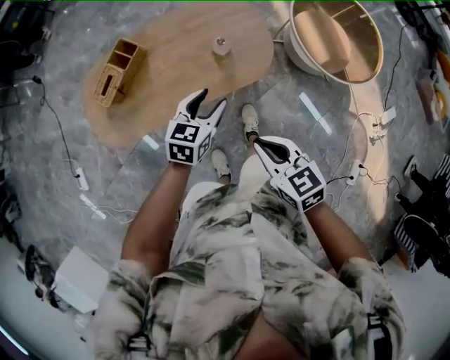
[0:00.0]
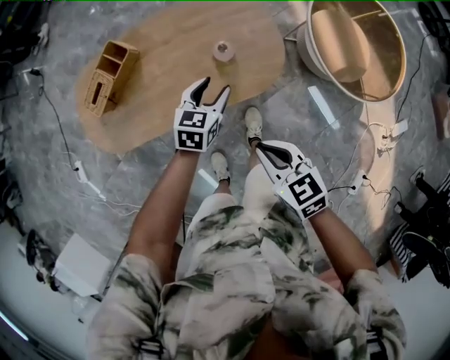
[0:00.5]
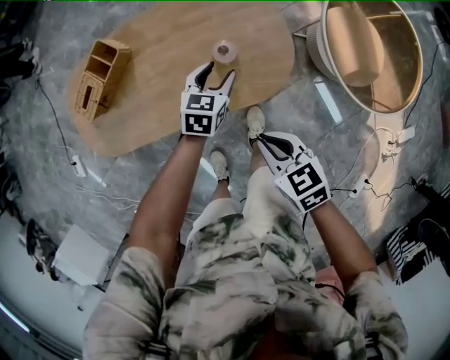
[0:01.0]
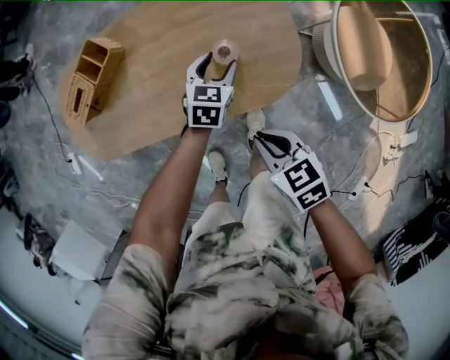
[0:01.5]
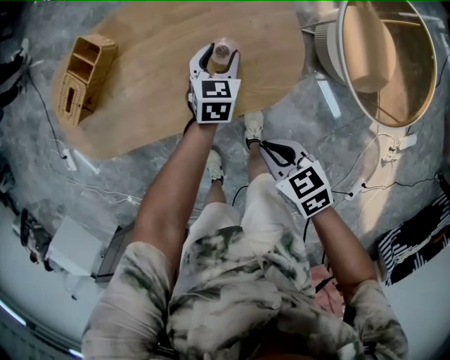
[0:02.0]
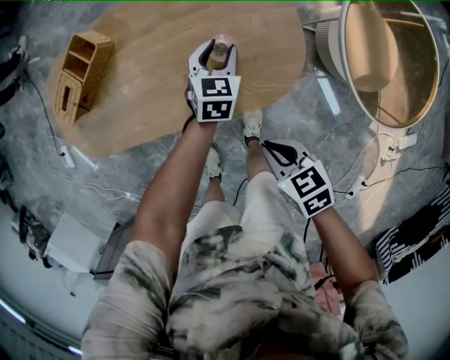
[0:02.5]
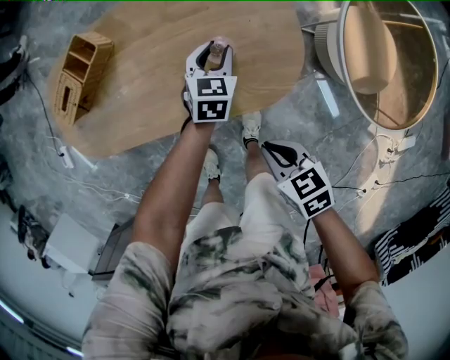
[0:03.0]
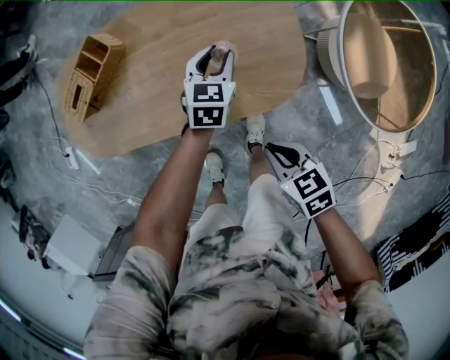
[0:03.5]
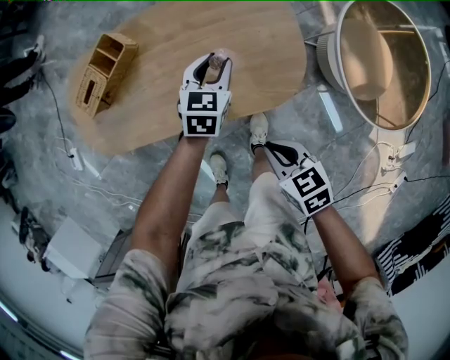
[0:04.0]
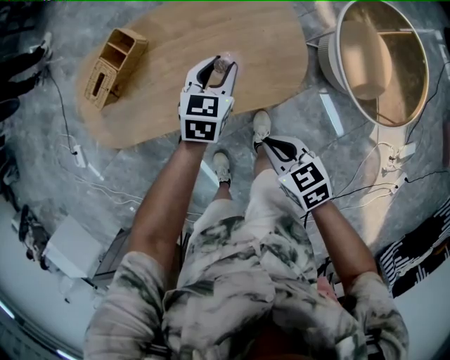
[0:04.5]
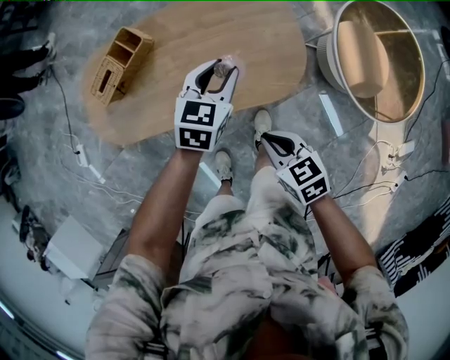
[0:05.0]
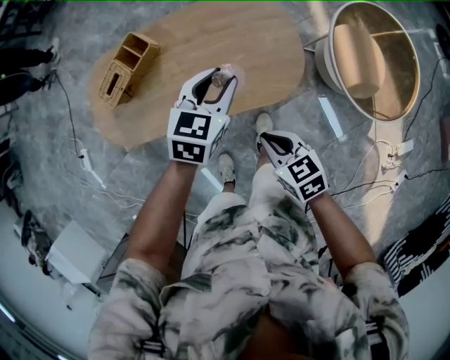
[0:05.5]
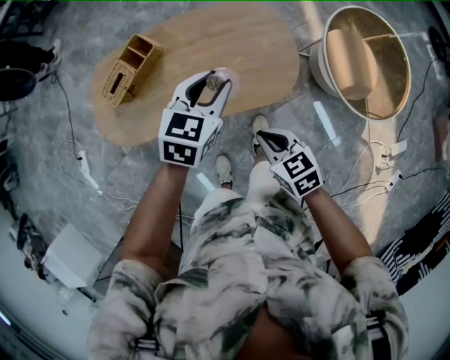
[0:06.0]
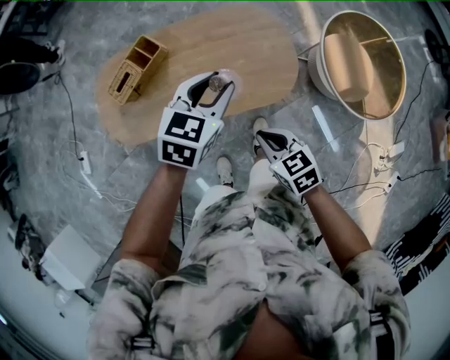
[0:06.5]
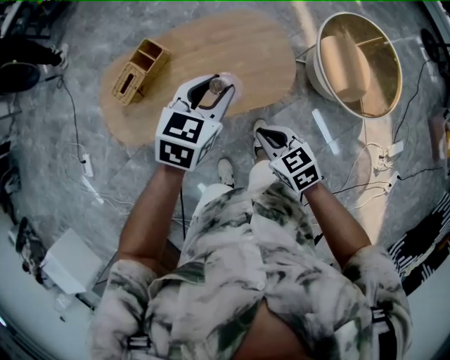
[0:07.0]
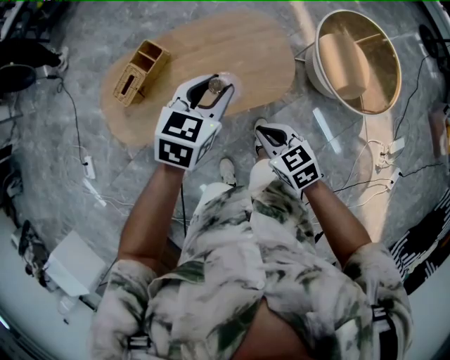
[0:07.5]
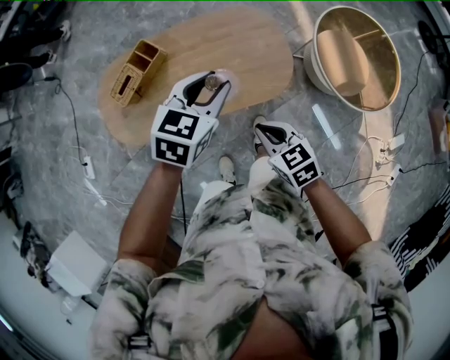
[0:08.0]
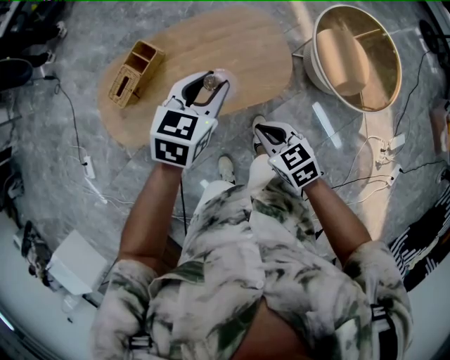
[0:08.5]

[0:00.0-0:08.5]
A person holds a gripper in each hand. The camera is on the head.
0:00.0 to 0:02.0: Both grippers move downward, about 30 cm. The left gripper swivels approximately 20 degrees. Meanwhile the right gripper swivels approximately 20 degrees.
0:02.0 to 0:04.0: The left gripper is displaced upward by some 10 cm.
0:04.0 to 0:06.5: The right gripper shifts roughly 15 cm upward and to the left. Meanwhile the left gripper travels upward by roughly 25 cm.
0:06.5 to 0:08.5: The grippers stay close to where they were, moving slightly.

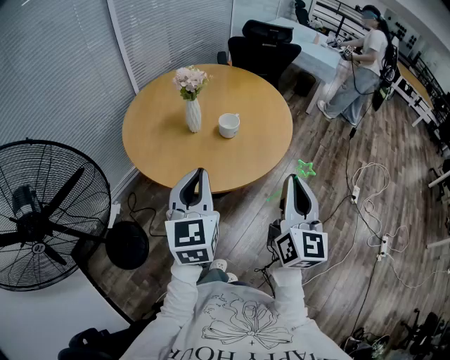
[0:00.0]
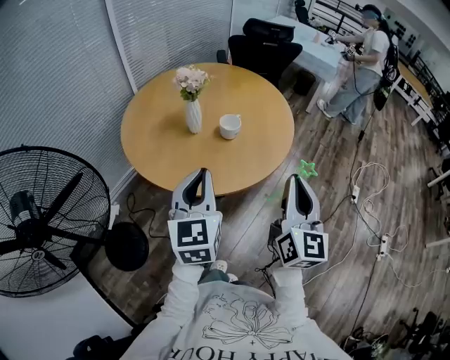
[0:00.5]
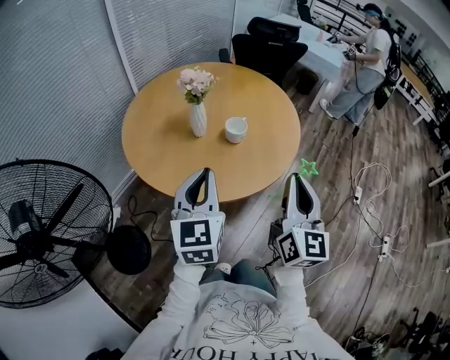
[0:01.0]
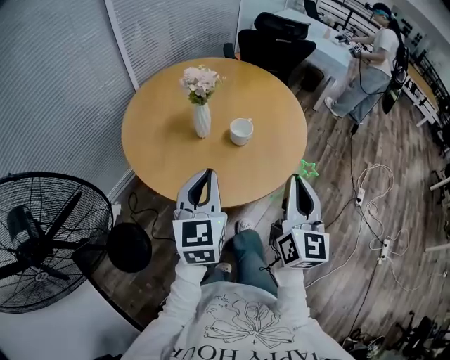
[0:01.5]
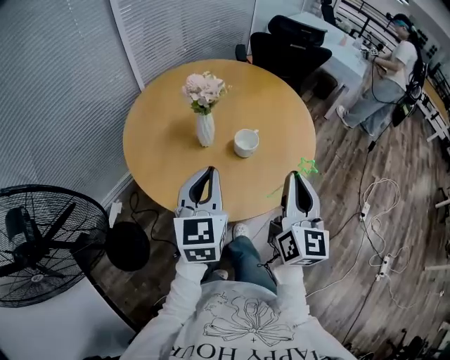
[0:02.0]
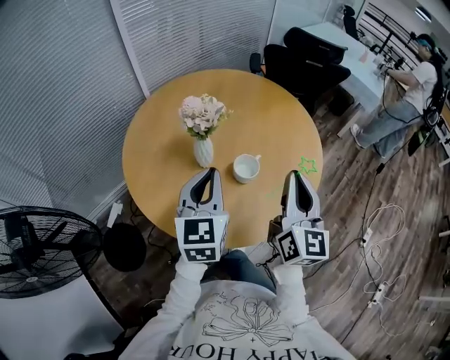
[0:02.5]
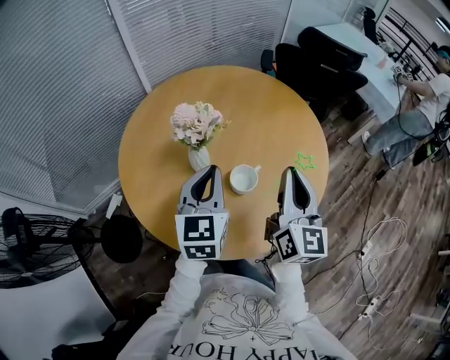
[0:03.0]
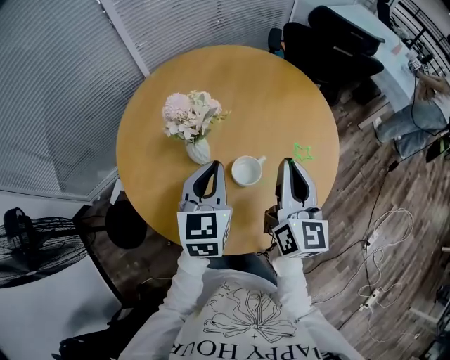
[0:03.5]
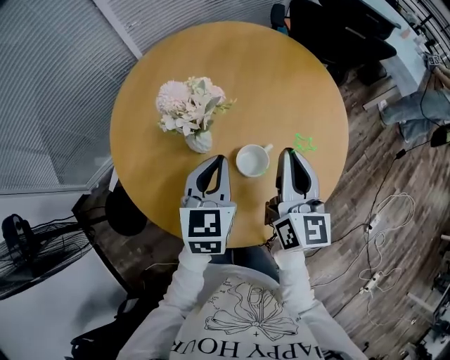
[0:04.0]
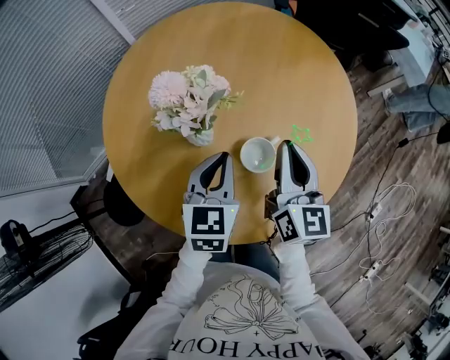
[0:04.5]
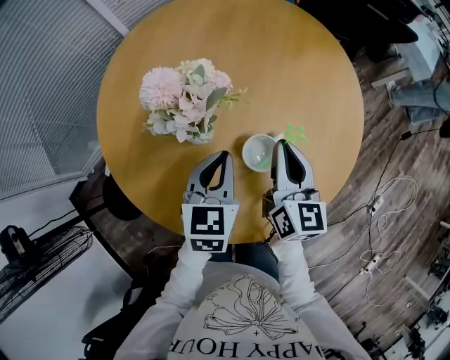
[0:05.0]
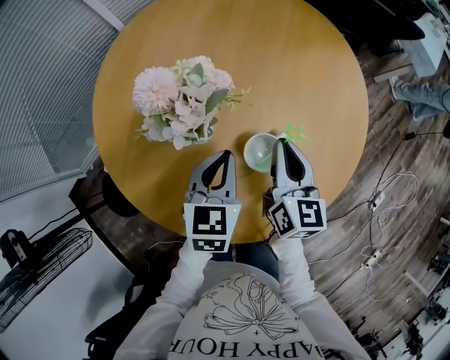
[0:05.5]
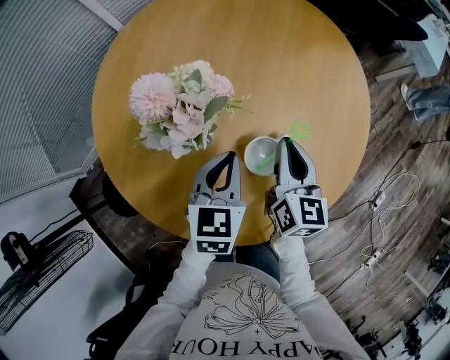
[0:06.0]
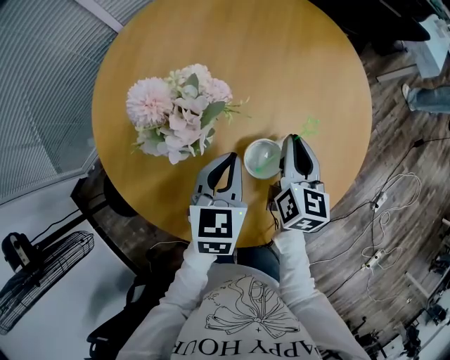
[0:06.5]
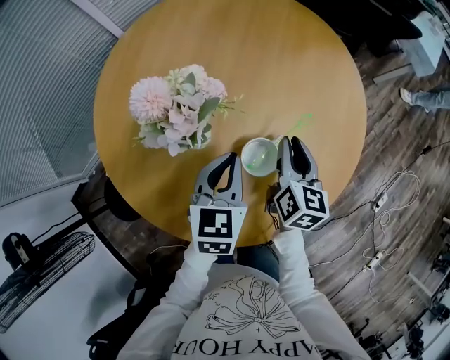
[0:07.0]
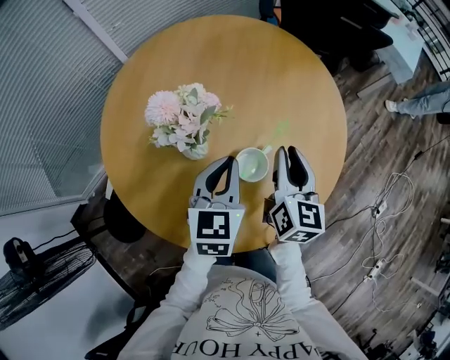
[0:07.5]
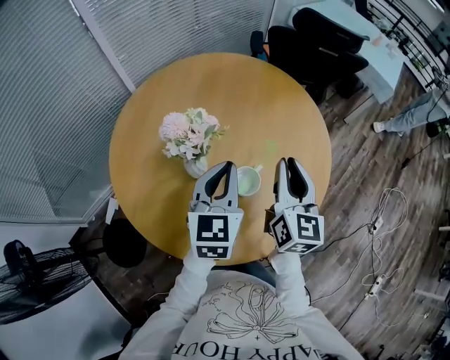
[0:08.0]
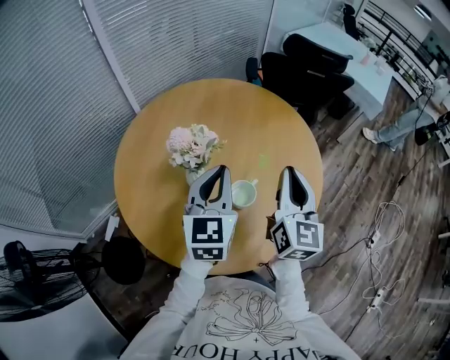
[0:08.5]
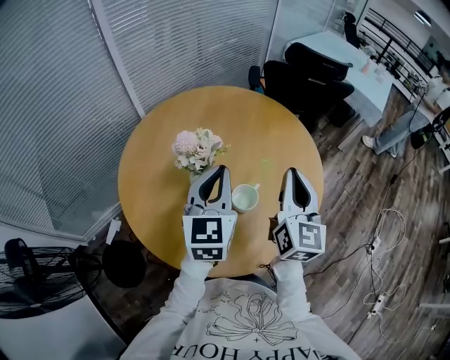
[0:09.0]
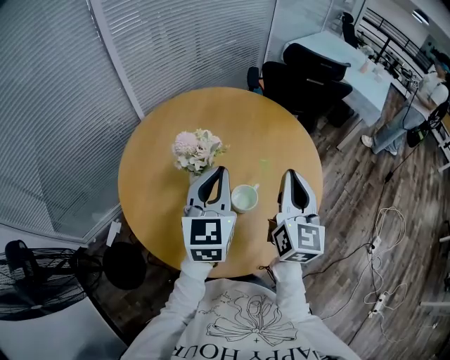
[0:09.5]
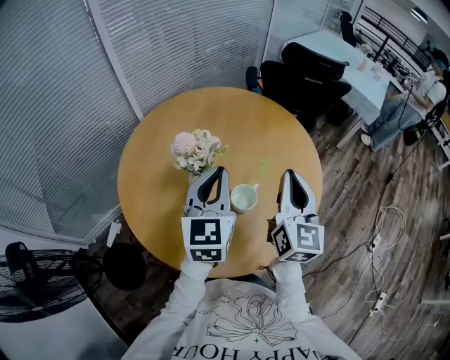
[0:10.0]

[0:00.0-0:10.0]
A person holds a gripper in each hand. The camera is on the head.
0:00.0 to 0:02.0: Both grippers travel together forward, approximately 20 cm.
0:02.0 to 0:04.0: The left gripper moves forward and downward, approximately 25 cm, while the right gripper moves forward, about 25 cm.
0:04.0 to 0:06.0: The two grippers go some 10 cm downward.
0:06.0 to 0:08.0: Both grippers travel together upward, about 15 cm.
0:08.0 to 0:10.0: The two grippers go about 5 cm upward.

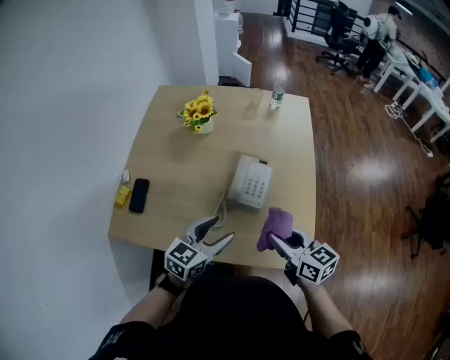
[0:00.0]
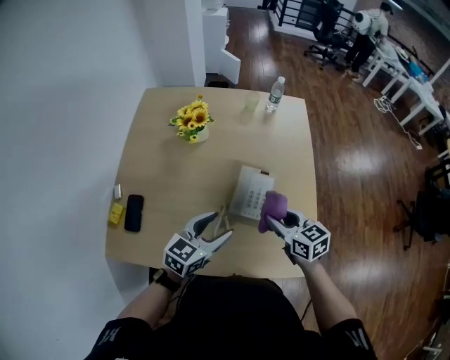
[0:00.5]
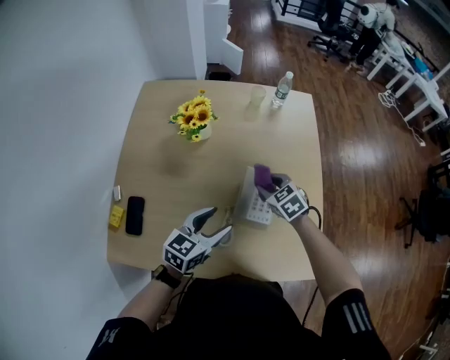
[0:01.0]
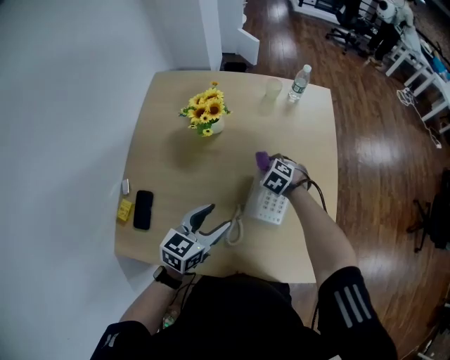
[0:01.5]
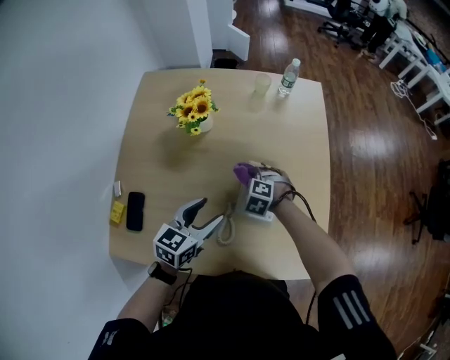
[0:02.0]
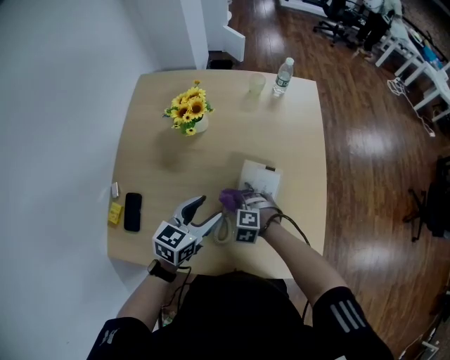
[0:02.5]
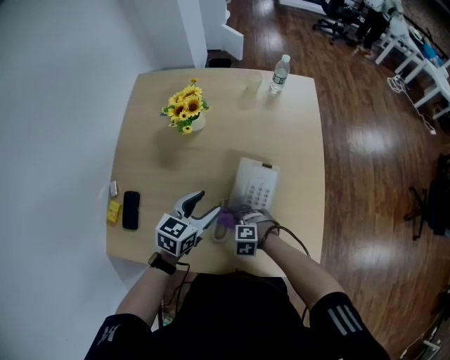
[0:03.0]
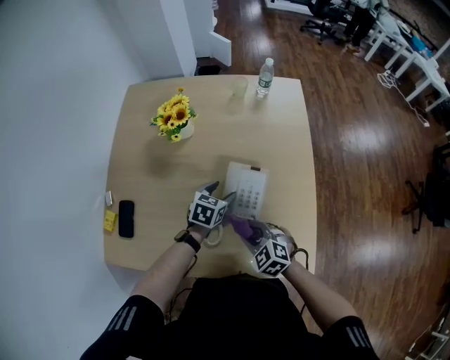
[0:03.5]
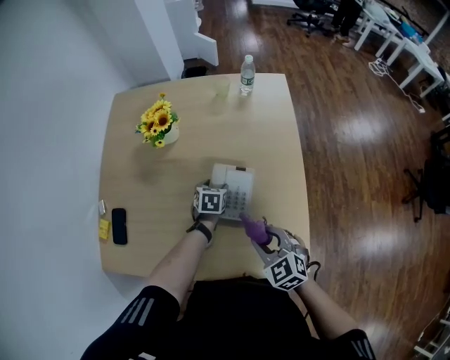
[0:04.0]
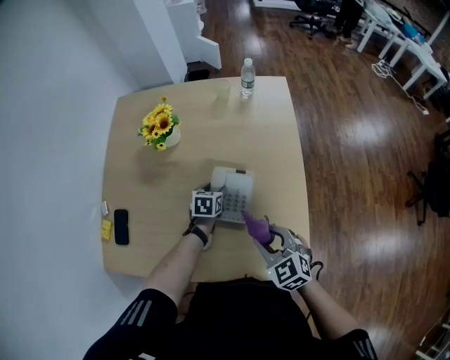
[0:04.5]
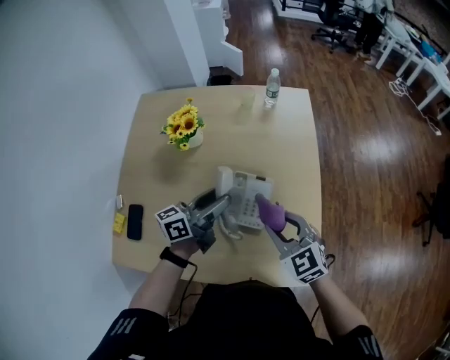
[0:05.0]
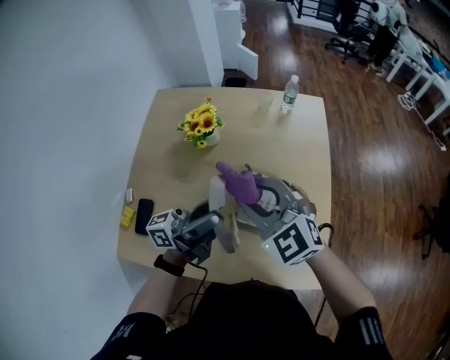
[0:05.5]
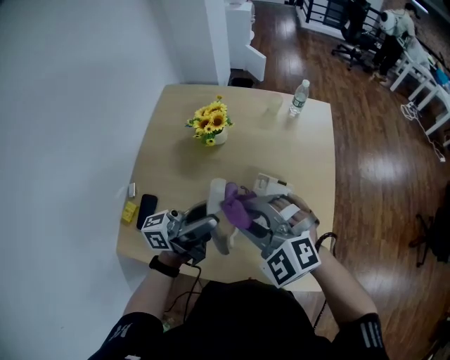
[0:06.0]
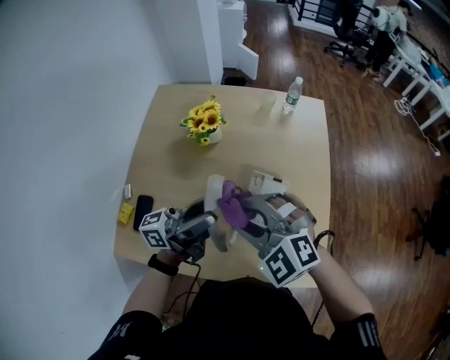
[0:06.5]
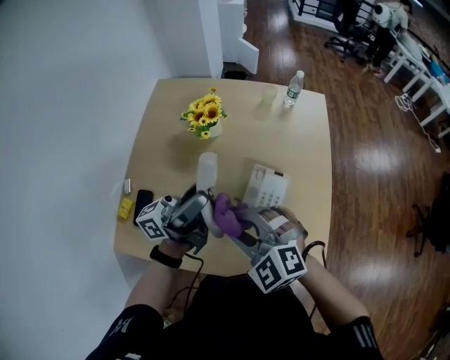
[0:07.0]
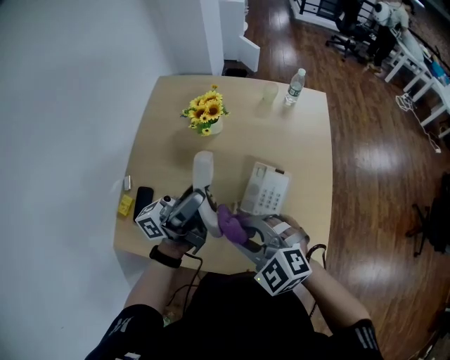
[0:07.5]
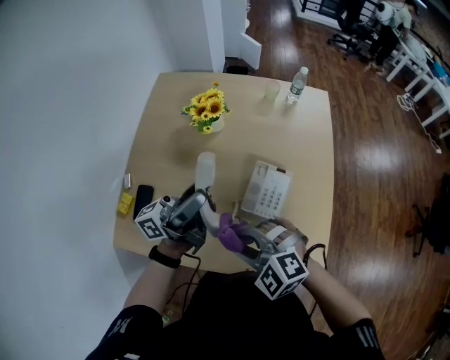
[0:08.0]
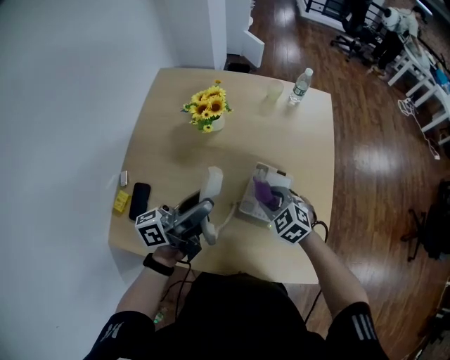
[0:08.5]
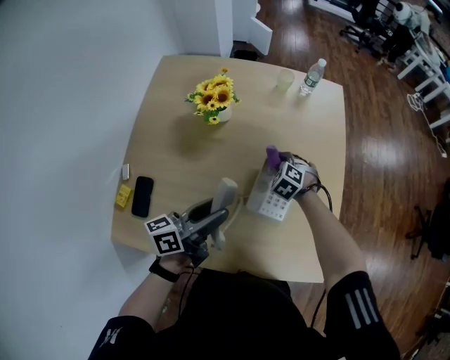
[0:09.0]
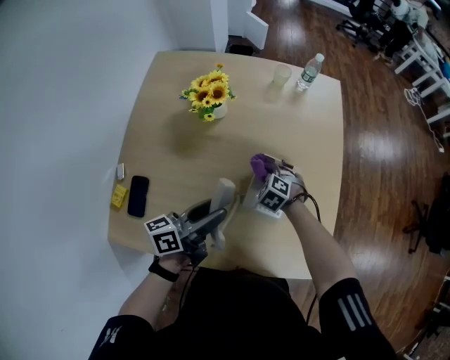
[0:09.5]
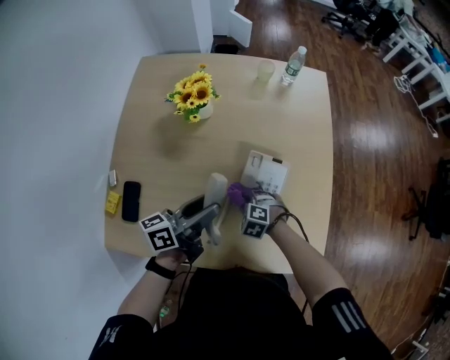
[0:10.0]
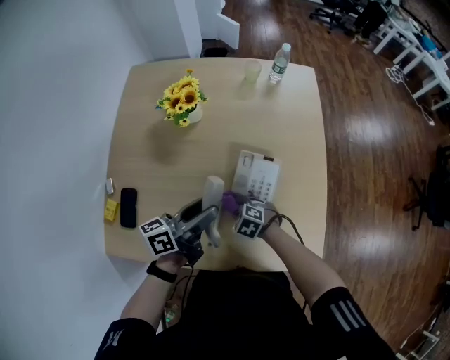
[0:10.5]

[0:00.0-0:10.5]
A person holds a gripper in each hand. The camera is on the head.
0:00.0 to 0:02.0: The right gripper goes approximately 35 cm forward, downward and to the left, and tips its fingers downward by some 50 degrees. Meanwhile the left gripper shifts some 20 cm forward and to the left.
0:02.0 to 0:04.0: The right gripper shifts approximately 25 cm backward, to the right and upward, and swivels roughly 40 degrees. Meanwhile the left gripper moves downward, to the right and forward, about 25 cm, and changes its angle by about 30 degrees.
0:04.0 to 0:06.5: The left gripper moves upward, about 35 cm, and angles its fingers upward, by some 80 degrees. The right gripper shifts approximately 25 cm upward and to the left, and swivels approximately 40 degrees.
0:06.5 to 0:08.5: The right gripper goes roughly 20 cm downward, and rotates roughly 30 degrees; the left gripper heads downward, covering some 5 cm.
0:08.5 to 0:10.5: The right gripper heads downward and backward, covering some 15 cm, and changes its angle by about 20 degrees, while the left gripper travels downward by about 10 cm.
